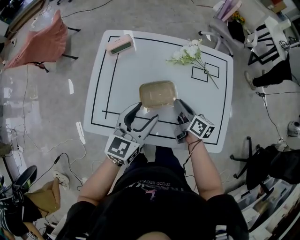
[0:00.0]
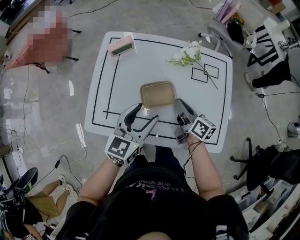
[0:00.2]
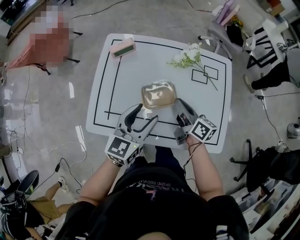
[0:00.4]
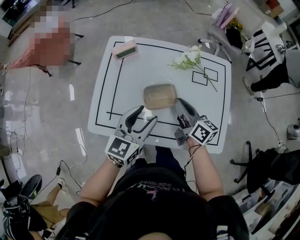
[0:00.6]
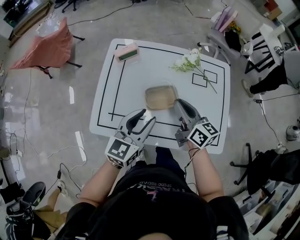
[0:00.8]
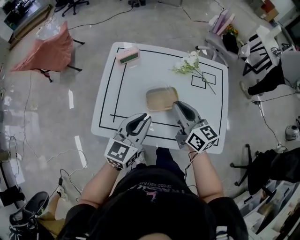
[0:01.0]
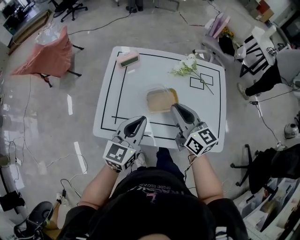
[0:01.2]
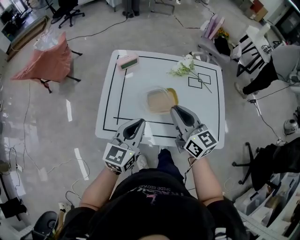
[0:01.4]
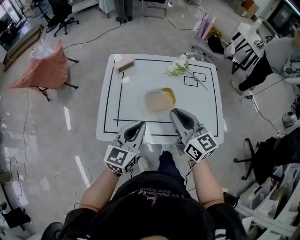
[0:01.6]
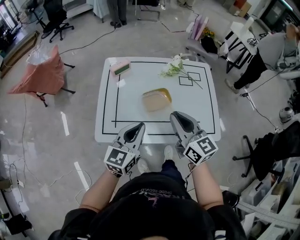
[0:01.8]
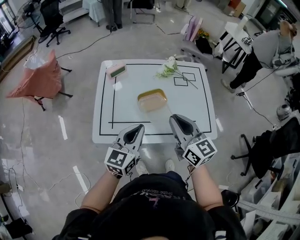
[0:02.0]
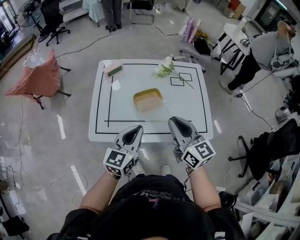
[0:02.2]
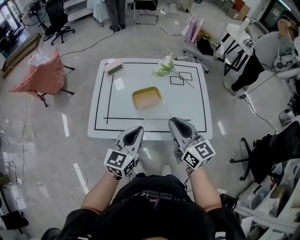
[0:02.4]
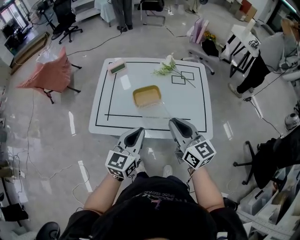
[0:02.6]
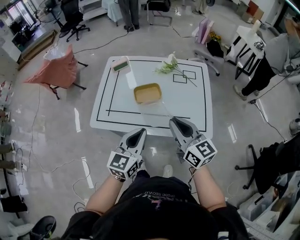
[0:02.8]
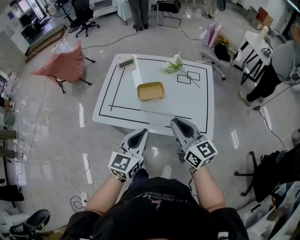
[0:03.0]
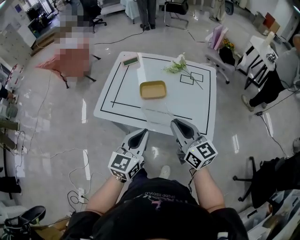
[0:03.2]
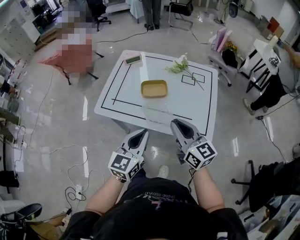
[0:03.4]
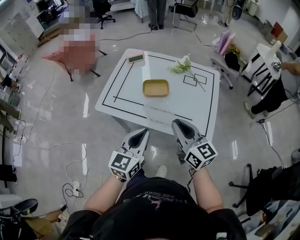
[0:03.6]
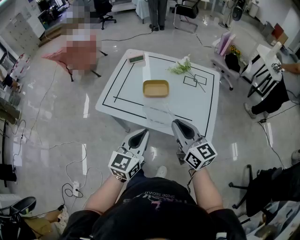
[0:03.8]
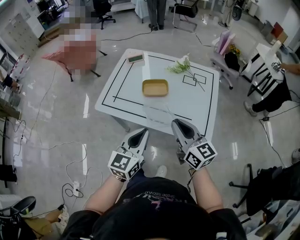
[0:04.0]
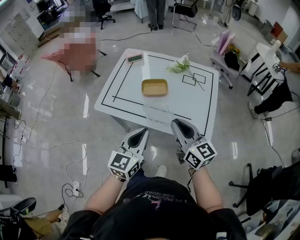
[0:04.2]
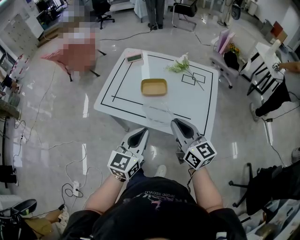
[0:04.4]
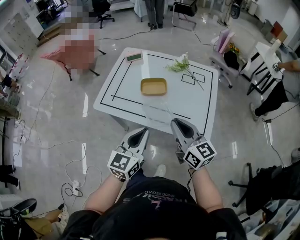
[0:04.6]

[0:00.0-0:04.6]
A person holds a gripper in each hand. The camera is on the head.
0:00.0 to 0:01.6: The left gripper travels backward, to the left and upward by approximately 15 cm, and closes its fingers; the right gripper shifts roughly 25 cm upward, backward and to the left, and turns by some 40 degrees.
0:01.6 to 0:03.0: The grippers both shift to the right and backward by about 20 cm.
0:03.0 to 0:04.6: The grippers make only small movements.

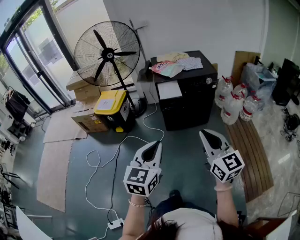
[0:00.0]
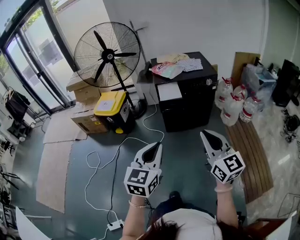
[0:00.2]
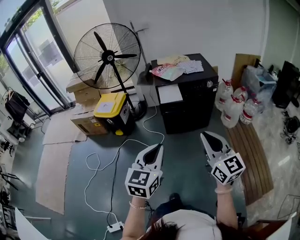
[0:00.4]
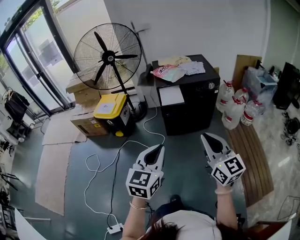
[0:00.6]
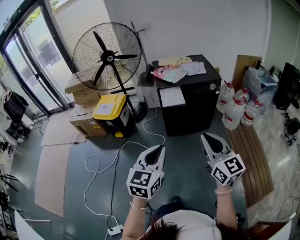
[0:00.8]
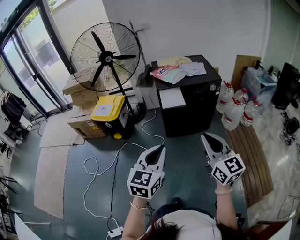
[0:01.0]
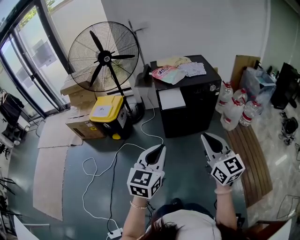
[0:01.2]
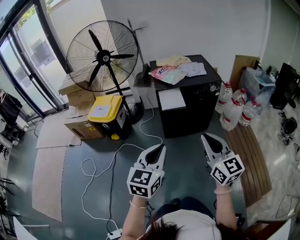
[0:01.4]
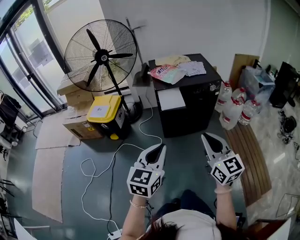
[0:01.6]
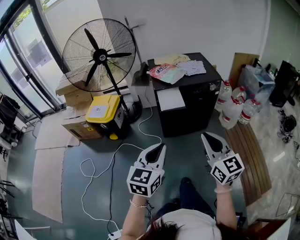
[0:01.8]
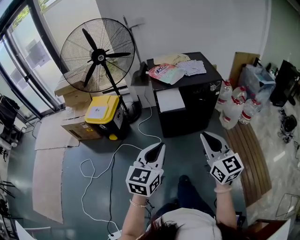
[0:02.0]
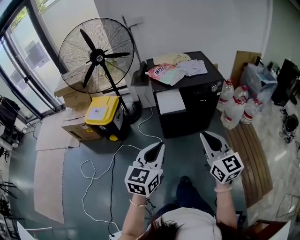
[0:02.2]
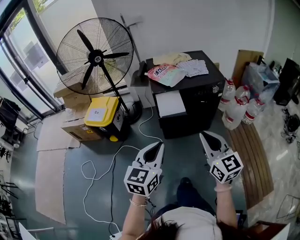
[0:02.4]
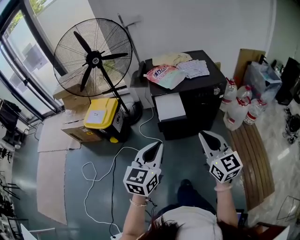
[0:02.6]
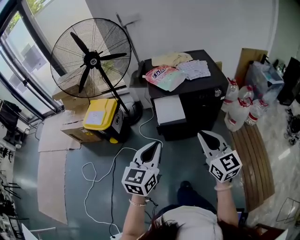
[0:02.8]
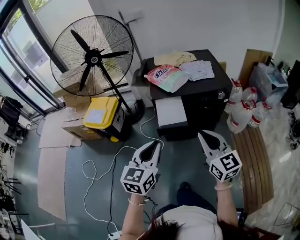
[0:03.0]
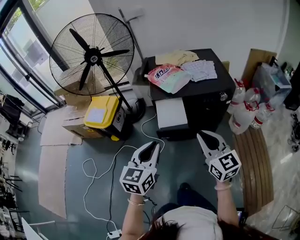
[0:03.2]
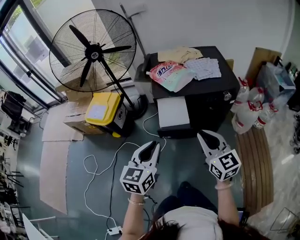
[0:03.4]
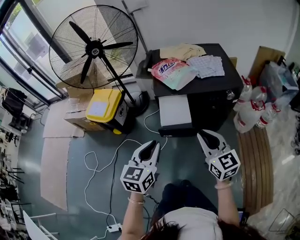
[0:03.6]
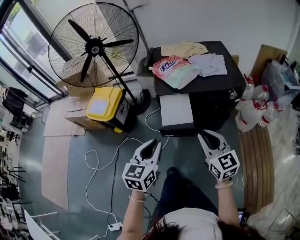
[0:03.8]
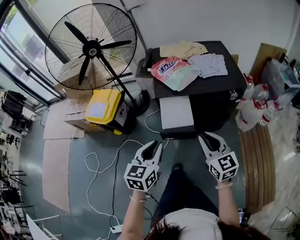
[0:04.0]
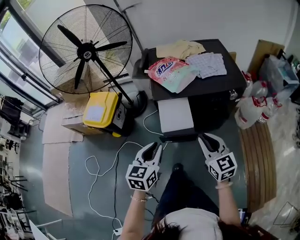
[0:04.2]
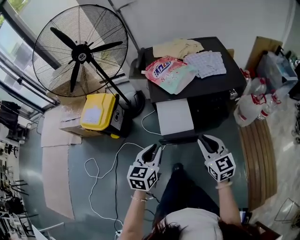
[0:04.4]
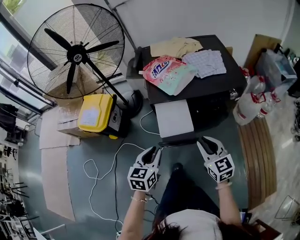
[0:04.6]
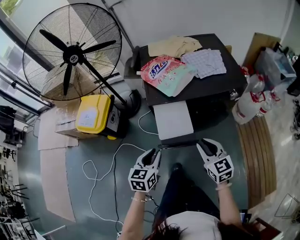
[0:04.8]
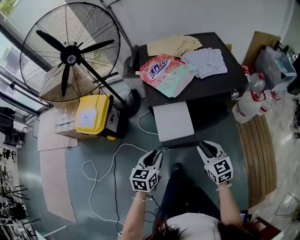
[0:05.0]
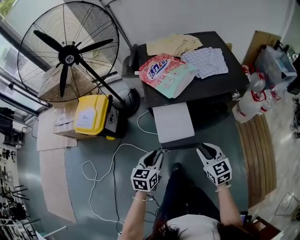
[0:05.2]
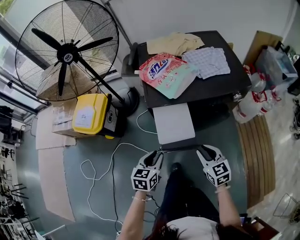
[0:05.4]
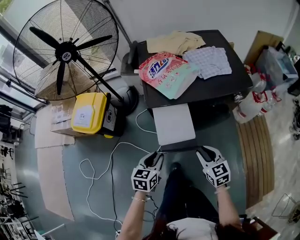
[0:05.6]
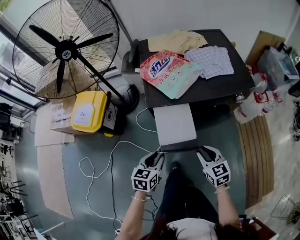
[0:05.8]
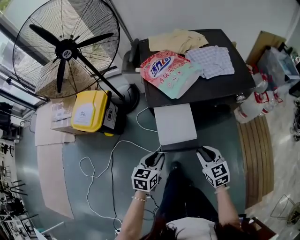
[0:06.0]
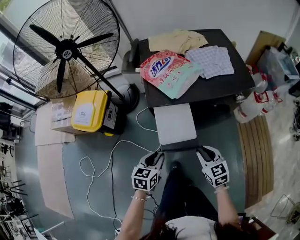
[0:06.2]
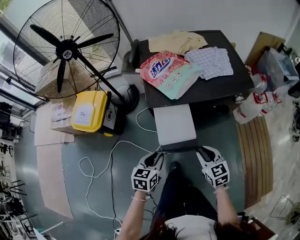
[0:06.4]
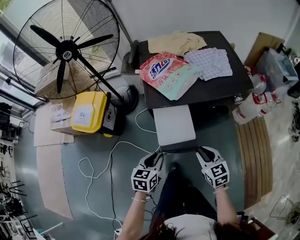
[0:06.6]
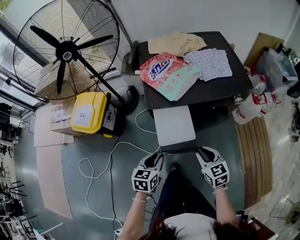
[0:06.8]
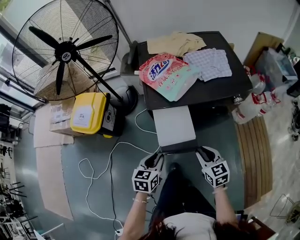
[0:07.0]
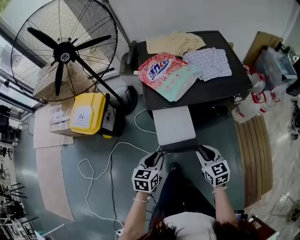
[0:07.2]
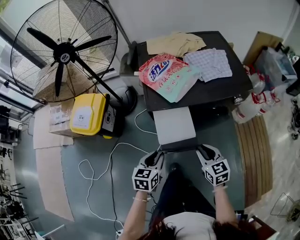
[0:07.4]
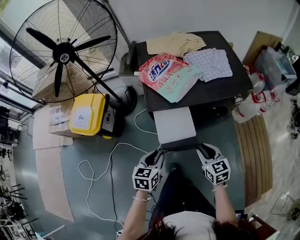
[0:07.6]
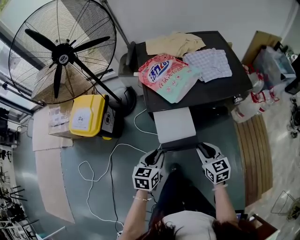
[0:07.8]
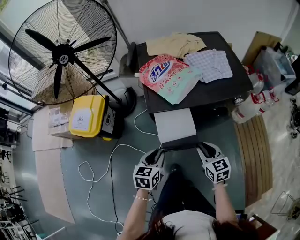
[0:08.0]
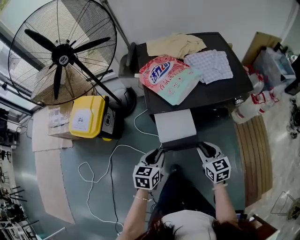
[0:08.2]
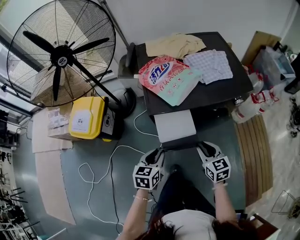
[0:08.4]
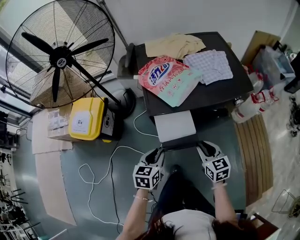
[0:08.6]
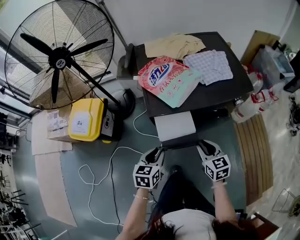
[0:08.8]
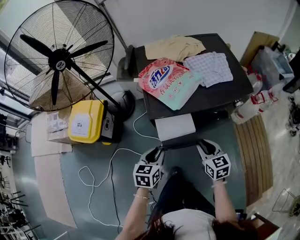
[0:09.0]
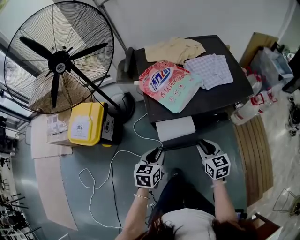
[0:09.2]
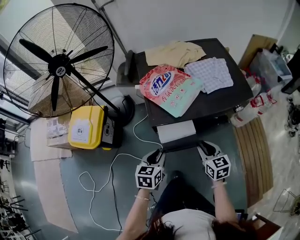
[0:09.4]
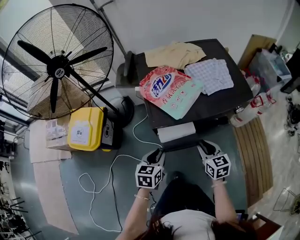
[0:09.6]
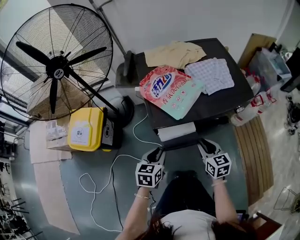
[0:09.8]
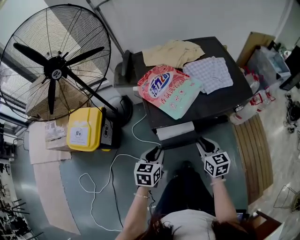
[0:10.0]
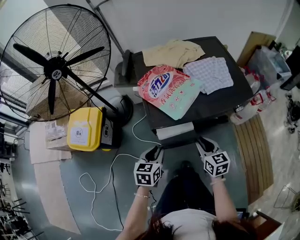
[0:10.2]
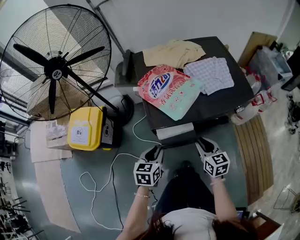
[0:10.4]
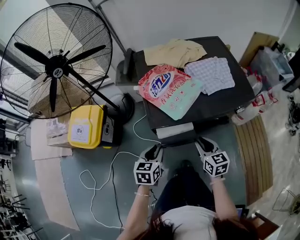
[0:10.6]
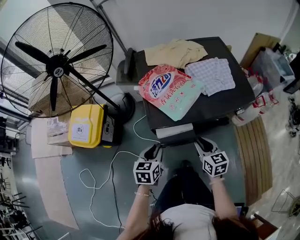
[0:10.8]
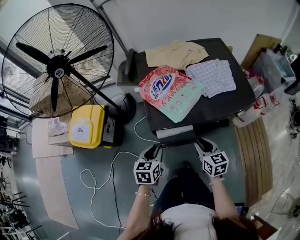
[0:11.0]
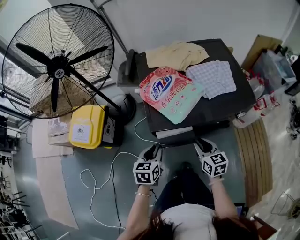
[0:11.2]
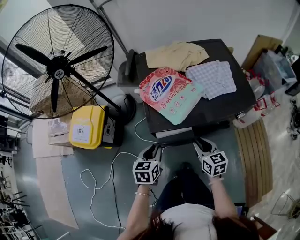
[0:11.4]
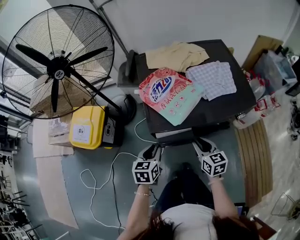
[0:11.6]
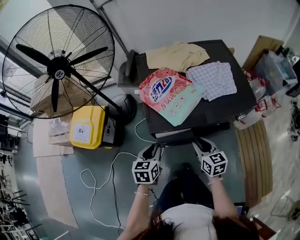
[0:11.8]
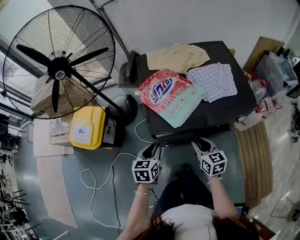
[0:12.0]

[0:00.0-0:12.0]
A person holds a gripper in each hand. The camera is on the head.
0:00.0 to 0:01.6: The grippers both shift forward by some 10 cm.
0:01.6 to 0:03.0: The two grippers go about 20 cm forward.
0:03.0 to 0:04.4: Both grippers travel together downward and forward, approximately 20 cm.
0:04.4 to 0:06.0: Both grippers move downward, some 10 cm.
0:06.0 to 0:07.6: The grippers move only a little.
0:07.6 to 0:09.0: The grippers both shift forward by some 5 cm.
0:09.0 to 0:10.4: The two grippers go roughly 5 cm forward.
0:10.4 to 0:12.0: The grippers move only a little.

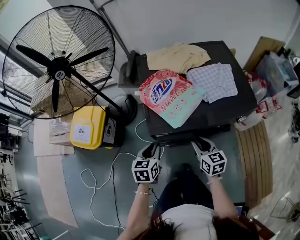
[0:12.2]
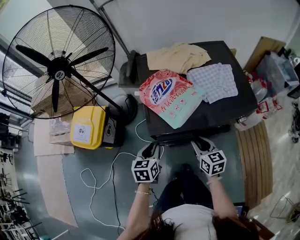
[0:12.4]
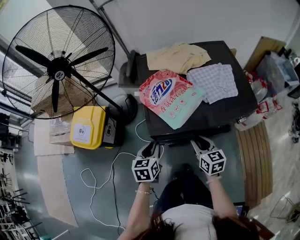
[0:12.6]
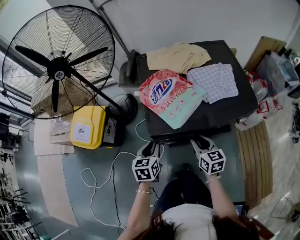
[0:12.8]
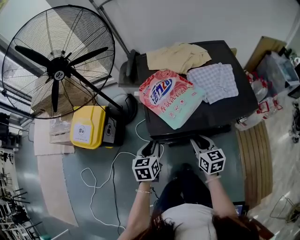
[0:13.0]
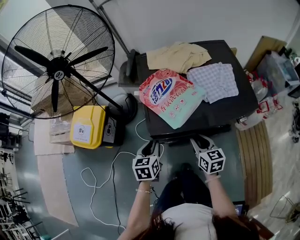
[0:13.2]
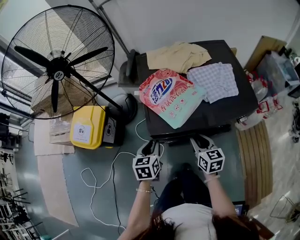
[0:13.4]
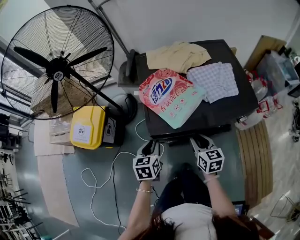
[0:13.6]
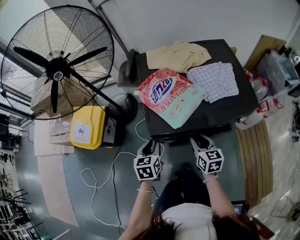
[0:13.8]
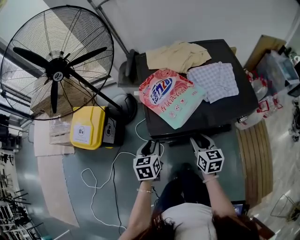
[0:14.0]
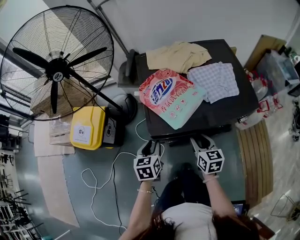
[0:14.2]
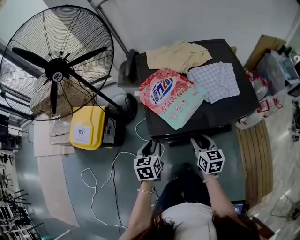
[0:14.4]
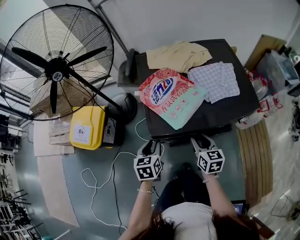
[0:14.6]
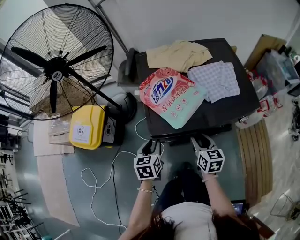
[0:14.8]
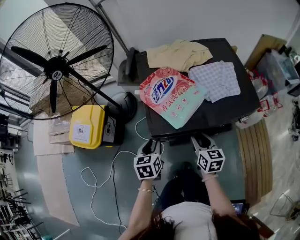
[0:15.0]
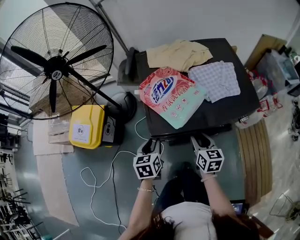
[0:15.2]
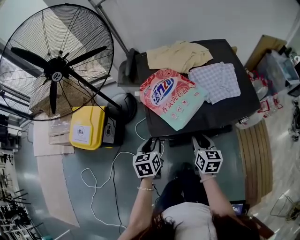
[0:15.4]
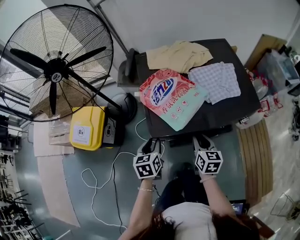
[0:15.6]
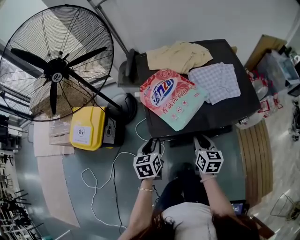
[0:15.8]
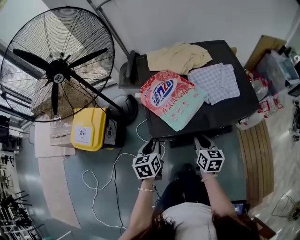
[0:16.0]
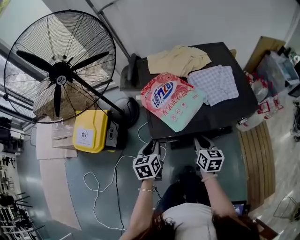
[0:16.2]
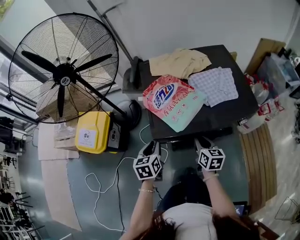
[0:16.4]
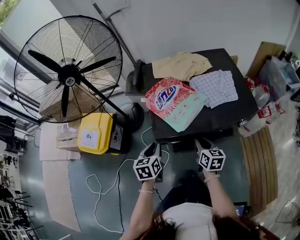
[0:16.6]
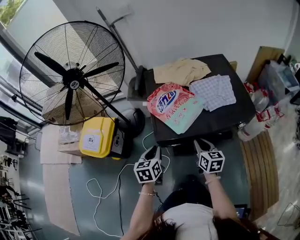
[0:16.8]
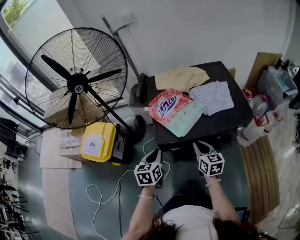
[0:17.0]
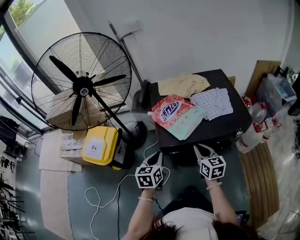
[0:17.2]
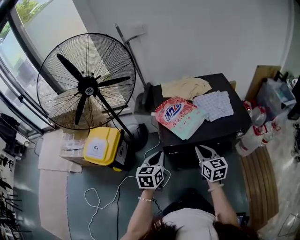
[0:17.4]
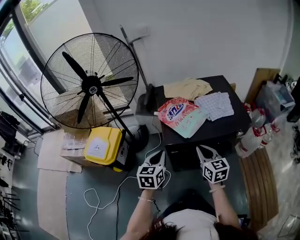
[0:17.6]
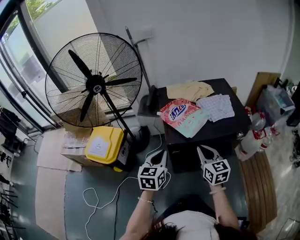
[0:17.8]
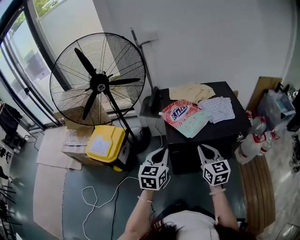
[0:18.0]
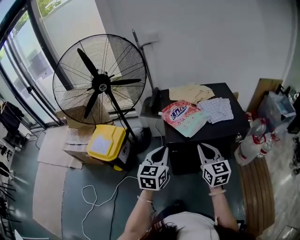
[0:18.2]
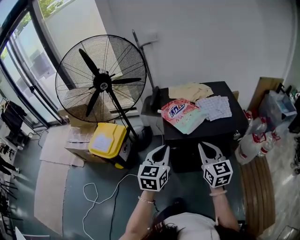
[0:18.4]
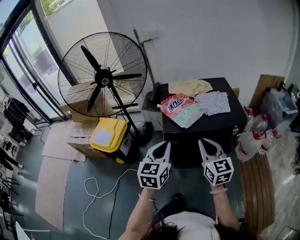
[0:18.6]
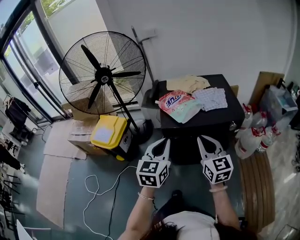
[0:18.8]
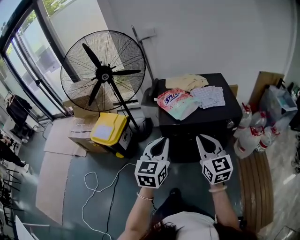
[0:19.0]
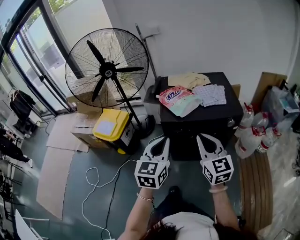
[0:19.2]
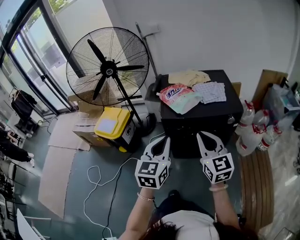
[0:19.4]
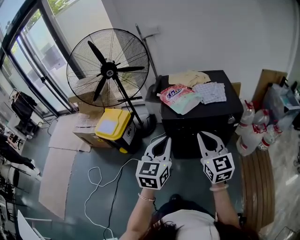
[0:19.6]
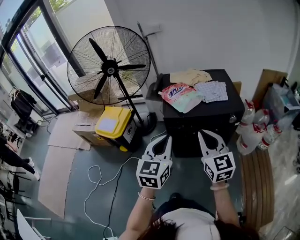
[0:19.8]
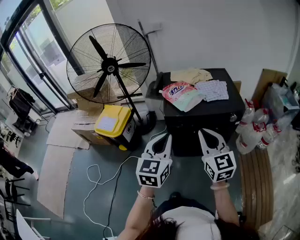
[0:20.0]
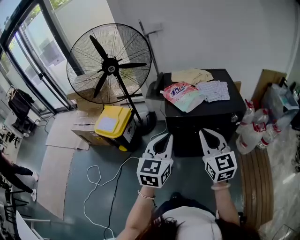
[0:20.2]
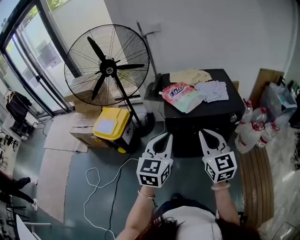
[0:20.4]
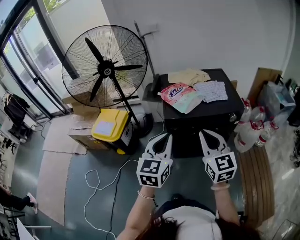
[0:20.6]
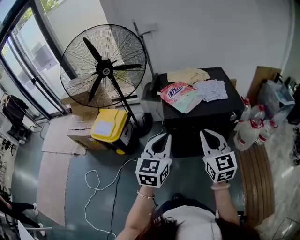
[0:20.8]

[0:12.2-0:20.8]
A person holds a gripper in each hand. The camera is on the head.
0:12.2 to 0:16.6: The grippers move only a little.
0:16.6 to 0:18.0: The two grippers go roughly 20 cm upward and backward. The right gripper rotates some 30 degrees. The left gripper turns by roughly 30 degrees.
0:18.0 to 0:19.4: The right gripper travels backward and upward by approximately 20 cm. Meanwhile the left gripper goes some 20 cm backward, upward and to the right.
0:19.4 to 0:20.8: The left gripper shifts by roughly 5 cm.
